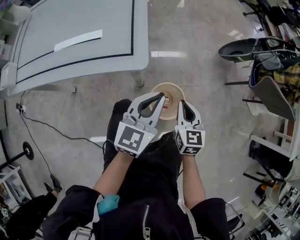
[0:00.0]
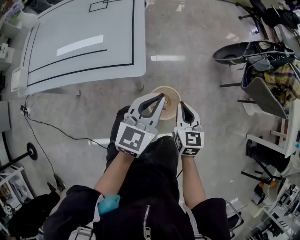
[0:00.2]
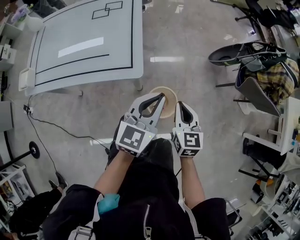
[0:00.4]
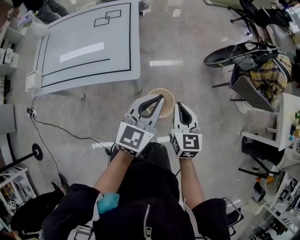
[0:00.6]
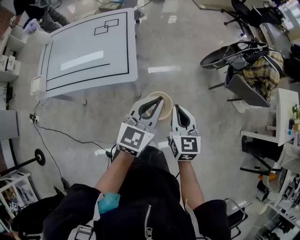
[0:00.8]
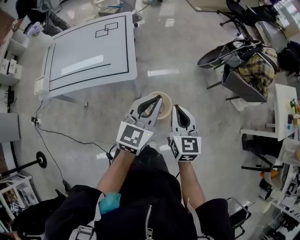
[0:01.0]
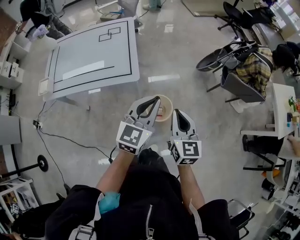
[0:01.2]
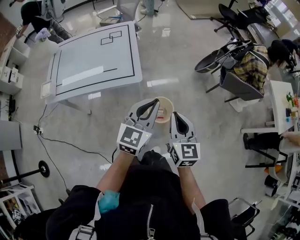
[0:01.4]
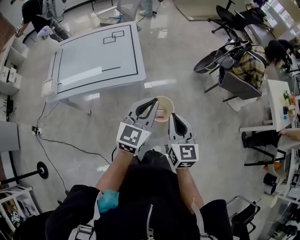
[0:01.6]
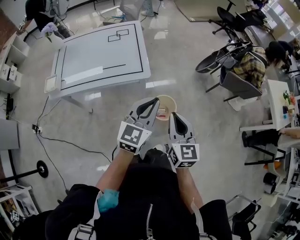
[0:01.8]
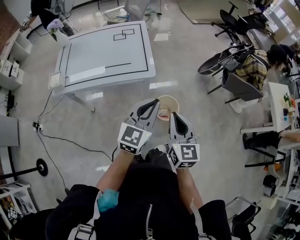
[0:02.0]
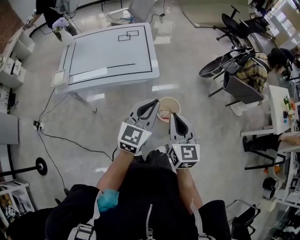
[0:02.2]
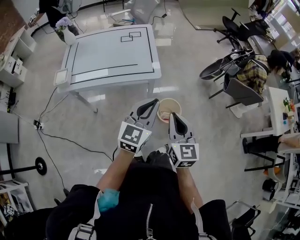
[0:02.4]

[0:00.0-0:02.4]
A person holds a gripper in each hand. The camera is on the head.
0:00.0 to 0:01.2: The two grippers go roughly 35 cm upward.
0:01.2 to 0:02.4: The right gripper goes about 20 cm backward and to the left. The left gripper shifts about 20 cm to the left and backward.

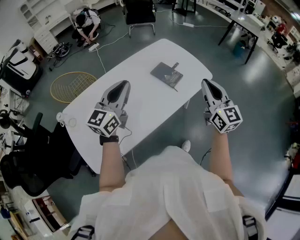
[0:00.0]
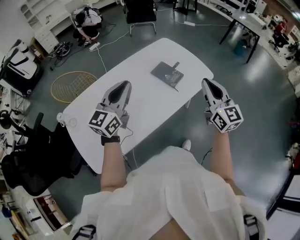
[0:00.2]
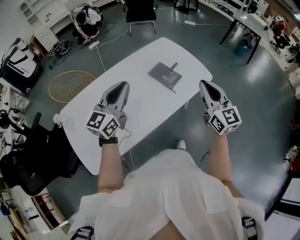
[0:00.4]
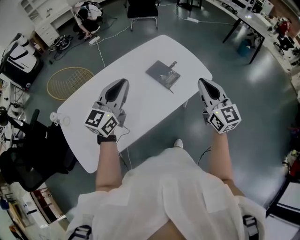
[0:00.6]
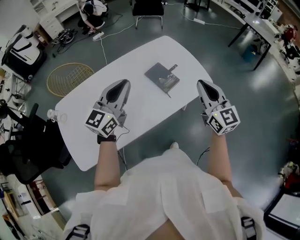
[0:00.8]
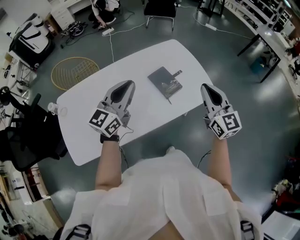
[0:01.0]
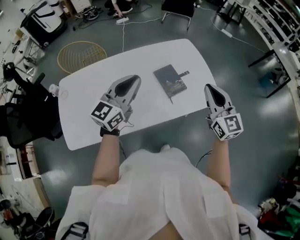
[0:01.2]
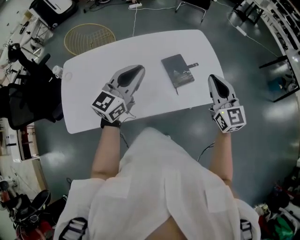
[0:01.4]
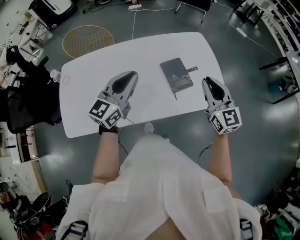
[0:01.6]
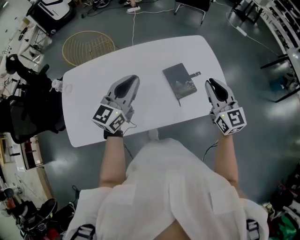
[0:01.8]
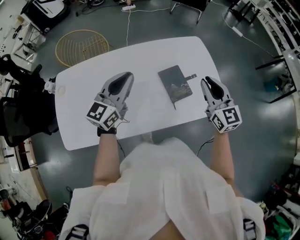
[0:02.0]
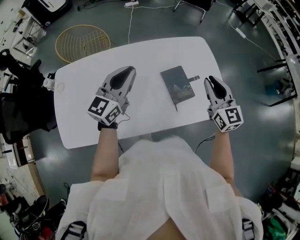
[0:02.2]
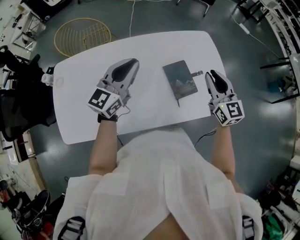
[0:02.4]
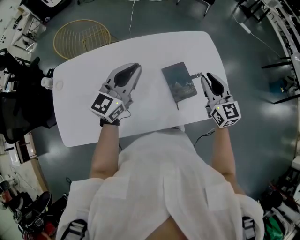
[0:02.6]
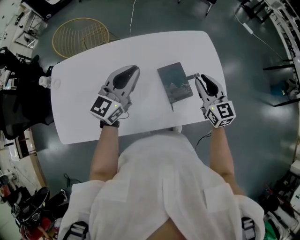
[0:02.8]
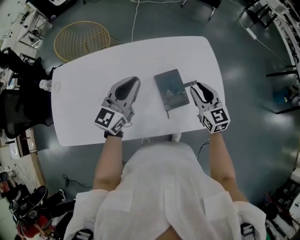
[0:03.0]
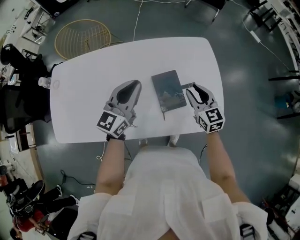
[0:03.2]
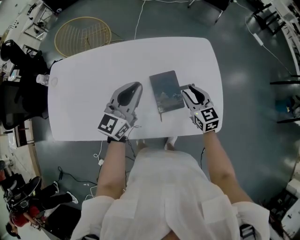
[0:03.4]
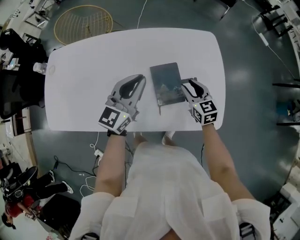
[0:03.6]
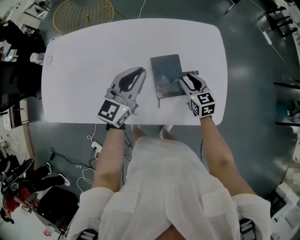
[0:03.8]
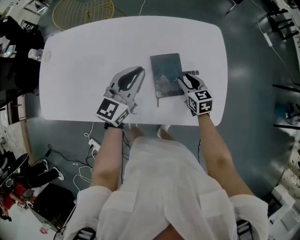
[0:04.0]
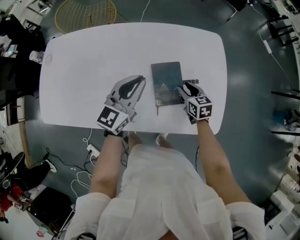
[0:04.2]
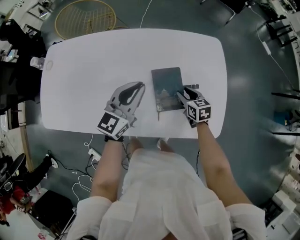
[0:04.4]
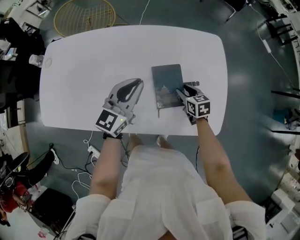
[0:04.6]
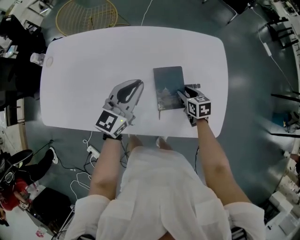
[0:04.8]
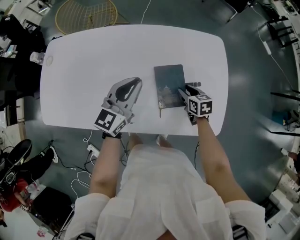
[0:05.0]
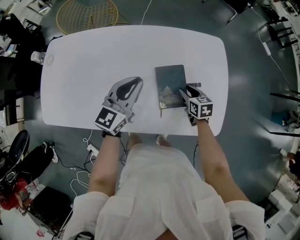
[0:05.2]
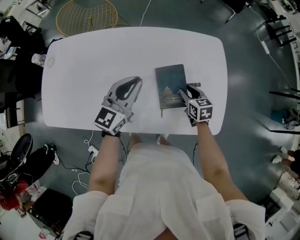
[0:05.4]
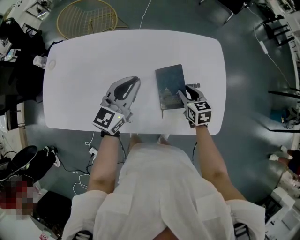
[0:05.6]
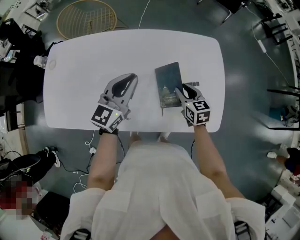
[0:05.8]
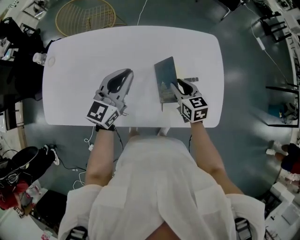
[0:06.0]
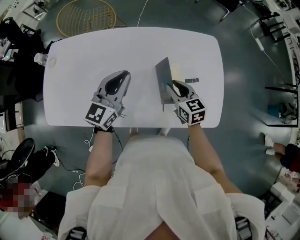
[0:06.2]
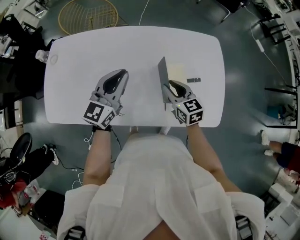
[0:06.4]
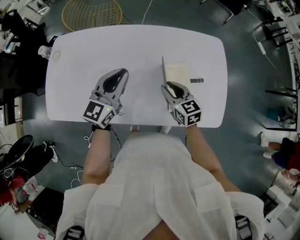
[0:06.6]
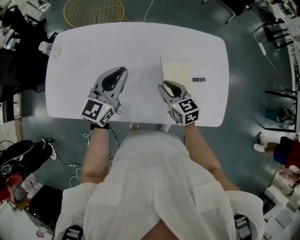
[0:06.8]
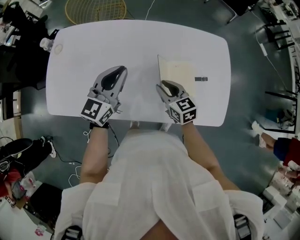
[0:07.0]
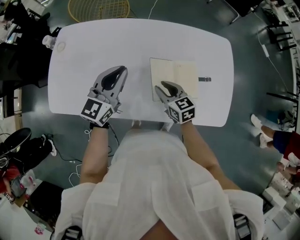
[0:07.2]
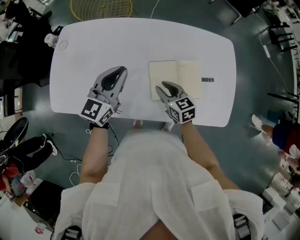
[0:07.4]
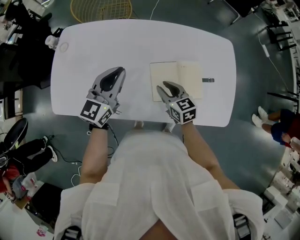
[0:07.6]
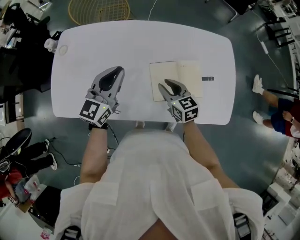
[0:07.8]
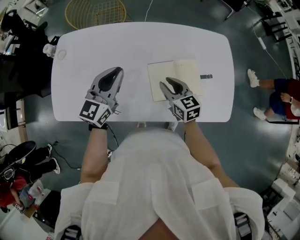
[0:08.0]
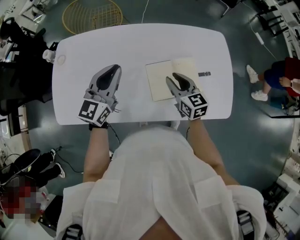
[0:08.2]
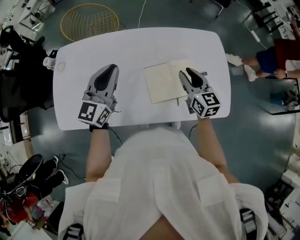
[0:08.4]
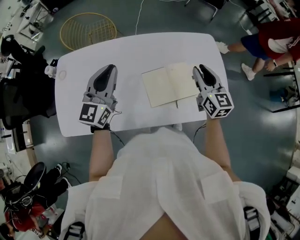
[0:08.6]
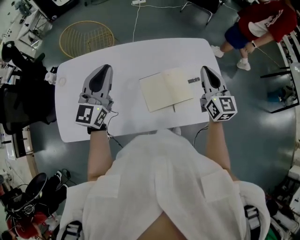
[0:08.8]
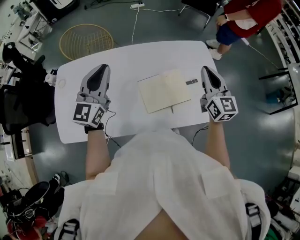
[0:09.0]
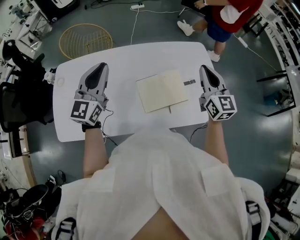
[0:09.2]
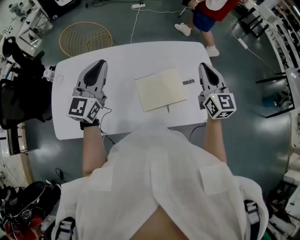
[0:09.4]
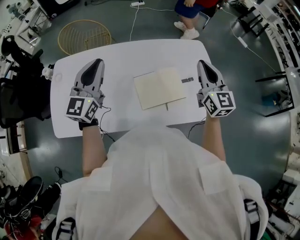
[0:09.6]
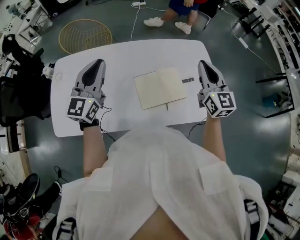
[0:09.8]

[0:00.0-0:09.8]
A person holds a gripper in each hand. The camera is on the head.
0:00.0 to 0:01.4: The right gripper moves forward, approximately 20 cm, and swivels about 30 degrees. The left gripper shifts roughly 15 cm to the right and forward.
0:01.4 to 0:02.8: The right gripper heads forward and downward, covering some 20 cm, and opens up; the left gripper is displaced forward by roughly 15 cm.
0:02.8 to 0:04.2: The left gripper heads downward and to the right, covering some 15 cm. The right gripper shifts roughly 25 cm downward, and changes its angle by roughly 30 degrees.
0:04.2 to 0:05.6: The left gripper moves approximately 5 cm. The right gripper travels upward by approximately 5 cm.
0:05.6 to 0:07.0: The right gripper moves to the left, approximately 20 cm. The left gripper moves to the left, some 10 cm.
0:07.0 to 0:08.4: The right gripper goes approximately 10 cm upward and to the right, and swivels approximately 20 degrees; the left gripper heads upward, covering approximately 5 cm.
0:08.4 to 0:09.8: The left gripper is displaced upward by some 5 cm, while the right gripper shifts some 20 cm upward and to the right, changes its angle by some 20 degrees, and closes.

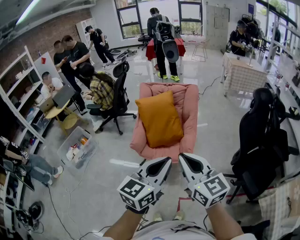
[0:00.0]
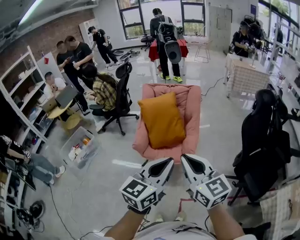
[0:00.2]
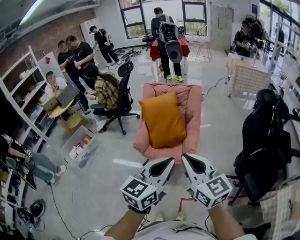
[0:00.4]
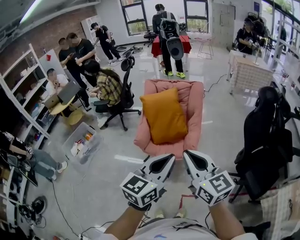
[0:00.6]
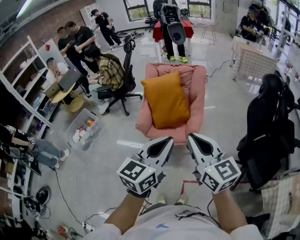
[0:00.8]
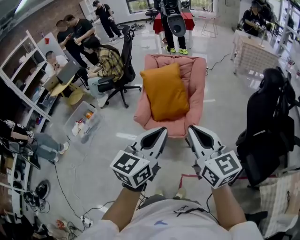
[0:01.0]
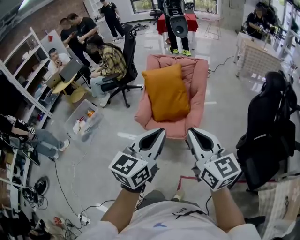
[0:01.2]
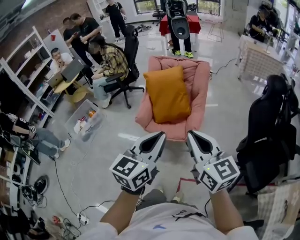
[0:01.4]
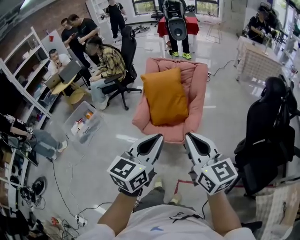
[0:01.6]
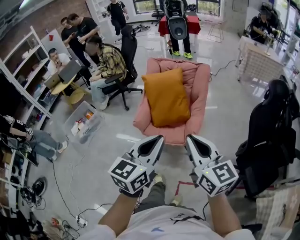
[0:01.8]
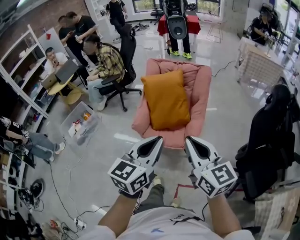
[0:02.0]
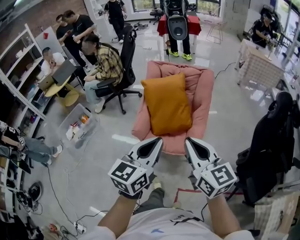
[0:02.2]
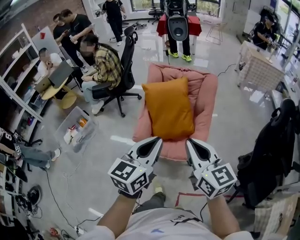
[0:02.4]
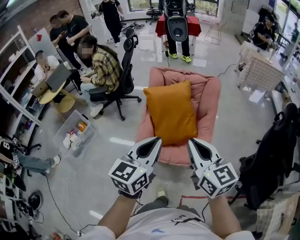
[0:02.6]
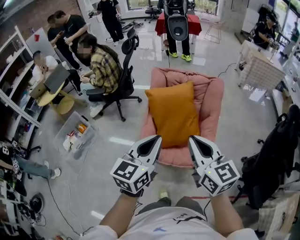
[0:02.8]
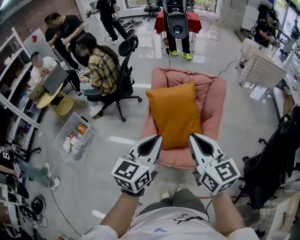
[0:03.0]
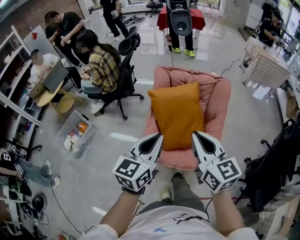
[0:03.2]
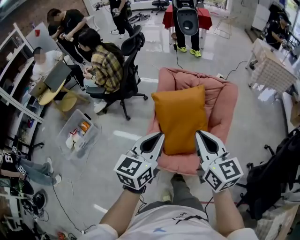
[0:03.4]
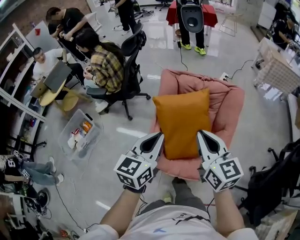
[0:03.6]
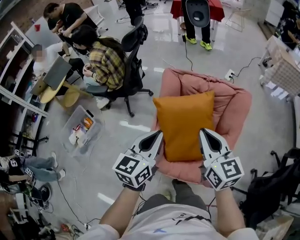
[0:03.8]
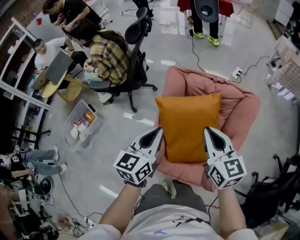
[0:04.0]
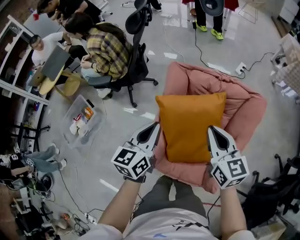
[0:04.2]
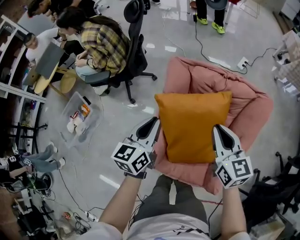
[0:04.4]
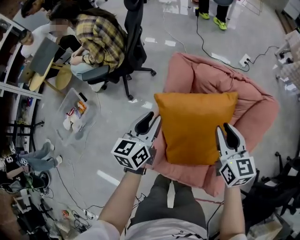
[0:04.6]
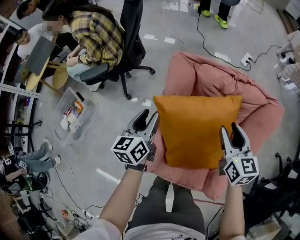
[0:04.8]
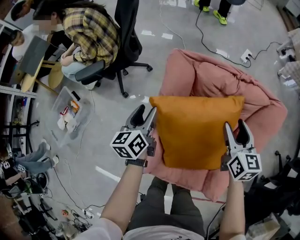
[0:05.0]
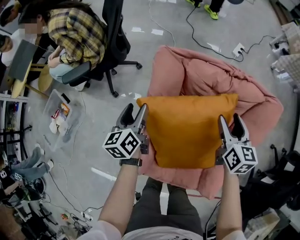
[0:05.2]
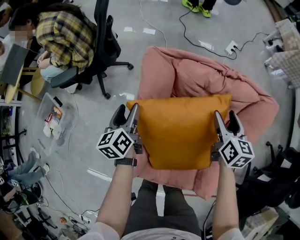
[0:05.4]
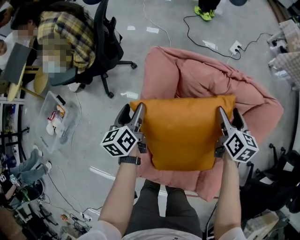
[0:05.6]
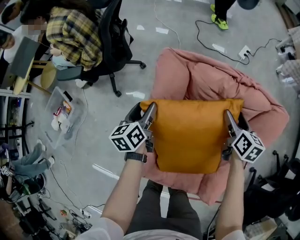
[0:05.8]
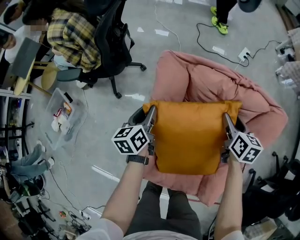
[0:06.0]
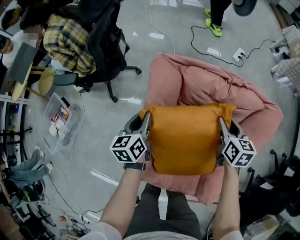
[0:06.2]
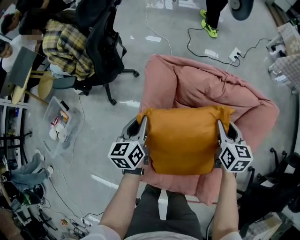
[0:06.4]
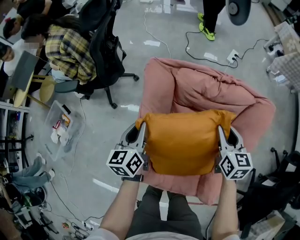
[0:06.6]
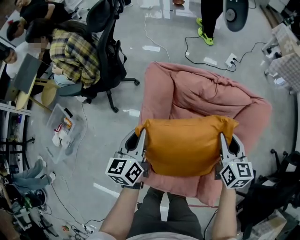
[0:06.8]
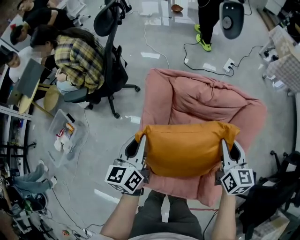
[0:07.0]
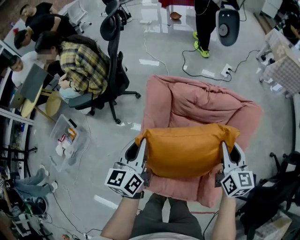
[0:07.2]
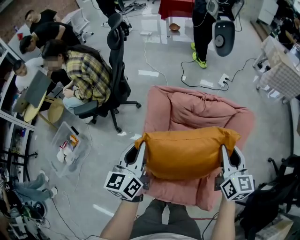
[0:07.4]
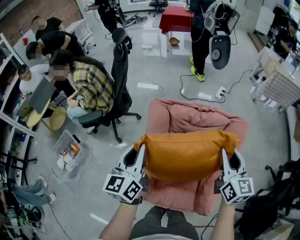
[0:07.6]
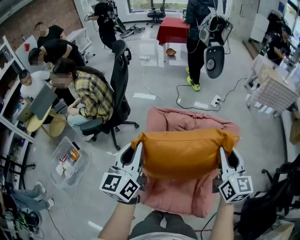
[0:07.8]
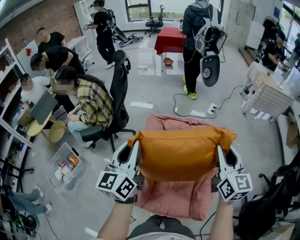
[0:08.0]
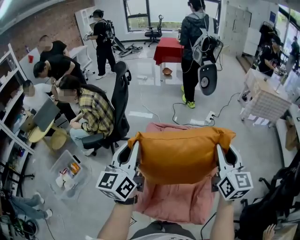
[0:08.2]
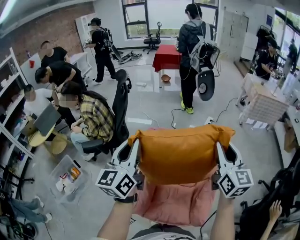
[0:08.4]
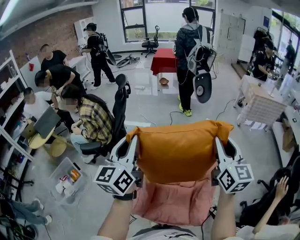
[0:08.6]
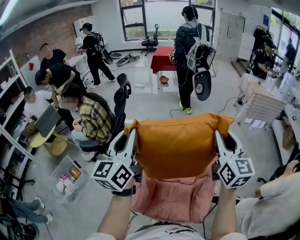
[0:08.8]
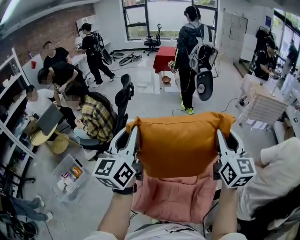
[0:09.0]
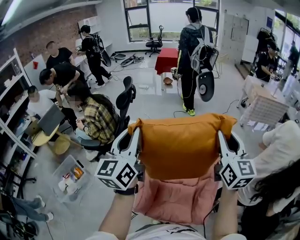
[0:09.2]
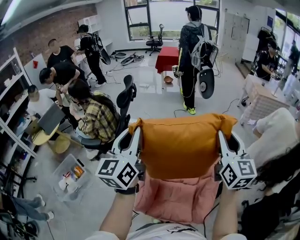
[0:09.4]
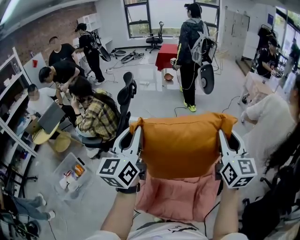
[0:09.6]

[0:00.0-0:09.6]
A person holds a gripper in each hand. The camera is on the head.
0:00.0 to 0:01.6: The right gripper moves approximately 5 cm.
0:01.6 to 0:03.2: The two grippers go roughly 40 cm forward and to the left.
0:03.2 to 0:04.8: The two grippers go roughly 50 cm forward and downward. The right gripper opens up, while the left gripper swivels approximately 30 degrees, and opens.
0:04.8 to 0:06.4: The left gripper goes about 5 cm downward, and closes. Meanwhile the right gripper moves downward, forward and to the right, about 10 cm, and opens, then closes again.
0:06.4 to 0:08.0: The grippers both shift upward by about 35 cm. The right gripper changes its angle by approximately 30 degrees. Meanwhile the left gripper changes its angle by some 30 degrees.
0:08.0 to 0:09.6: Both grippers move upward, approximately 10 cm.

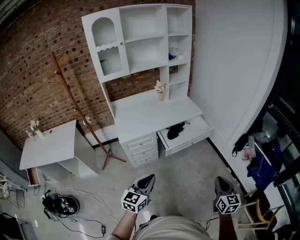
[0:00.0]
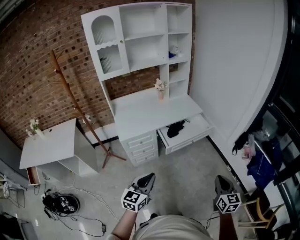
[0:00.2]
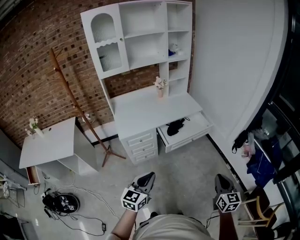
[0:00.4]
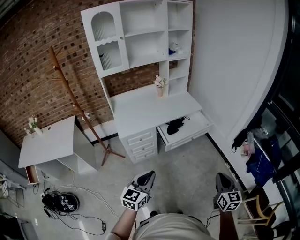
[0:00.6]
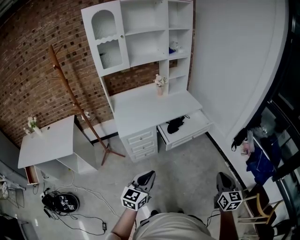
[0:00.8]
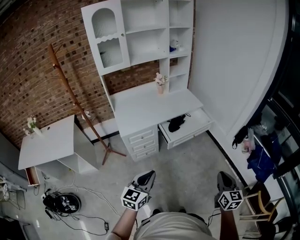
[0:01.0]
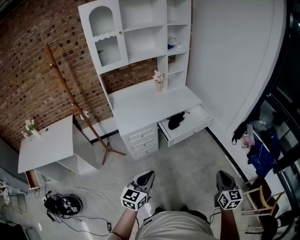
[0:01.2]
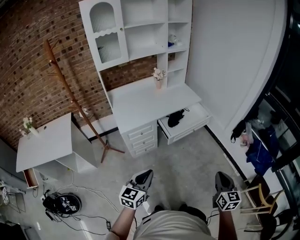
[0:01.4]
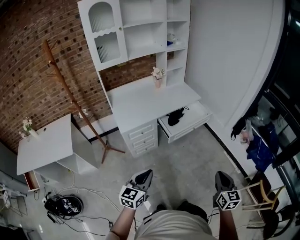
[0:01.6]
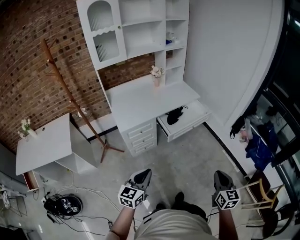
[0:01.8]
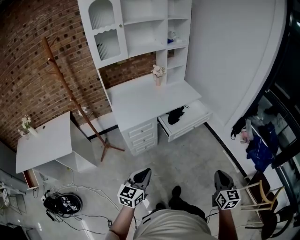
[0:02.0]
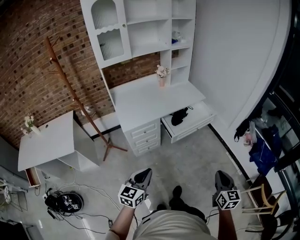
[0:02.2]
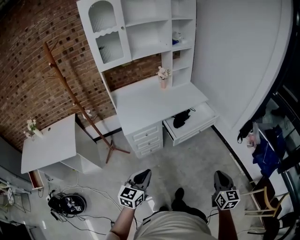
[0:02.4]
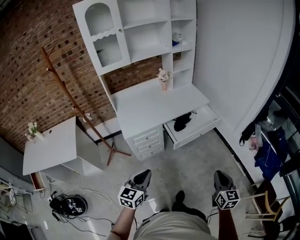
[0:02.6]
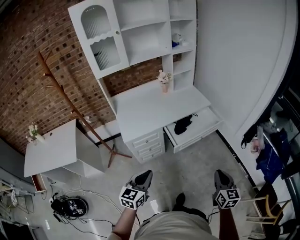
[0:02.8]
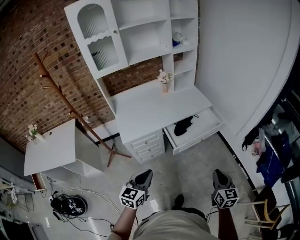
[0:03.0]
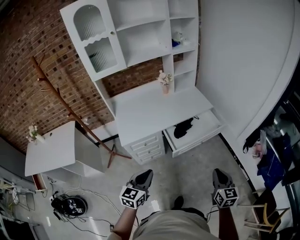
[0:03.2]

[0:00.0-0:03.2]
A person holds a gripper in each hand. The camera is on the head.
0:00.0 to 0:01.6: The left gripper moves to the left, roughly 10 cm, while the right gripper moves to the left and backward, some 10 cm.
0:01.6 to 0:03.2: The grippers both shift forward by approximately 20 cm.
